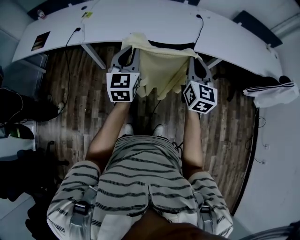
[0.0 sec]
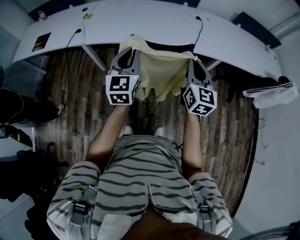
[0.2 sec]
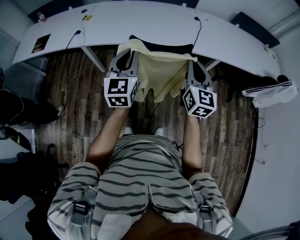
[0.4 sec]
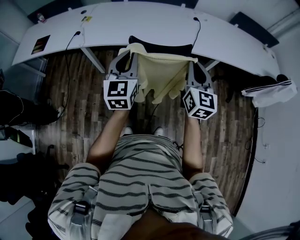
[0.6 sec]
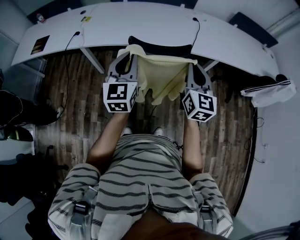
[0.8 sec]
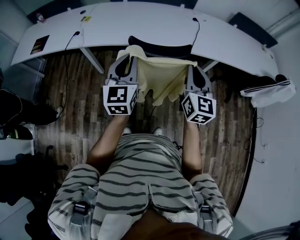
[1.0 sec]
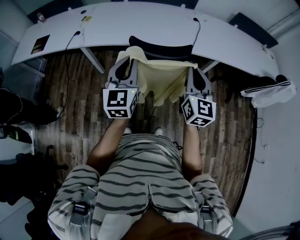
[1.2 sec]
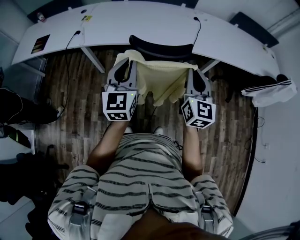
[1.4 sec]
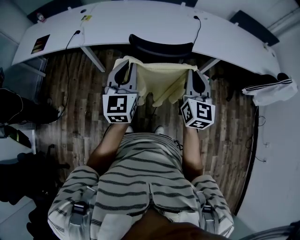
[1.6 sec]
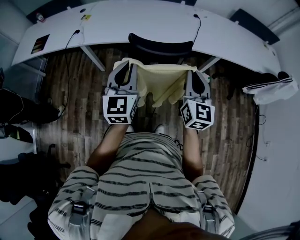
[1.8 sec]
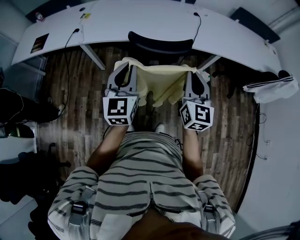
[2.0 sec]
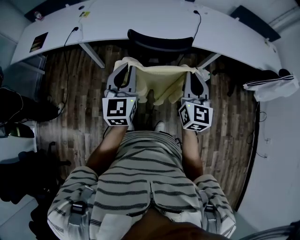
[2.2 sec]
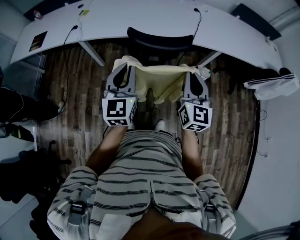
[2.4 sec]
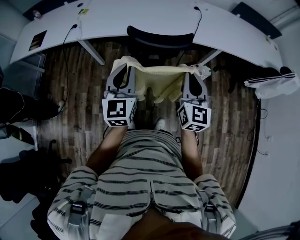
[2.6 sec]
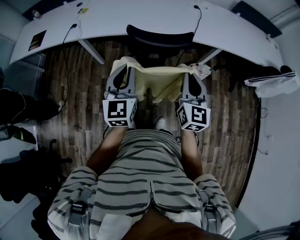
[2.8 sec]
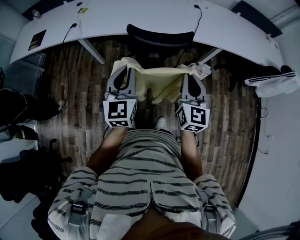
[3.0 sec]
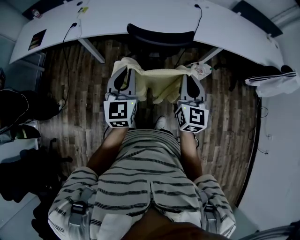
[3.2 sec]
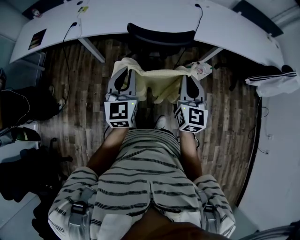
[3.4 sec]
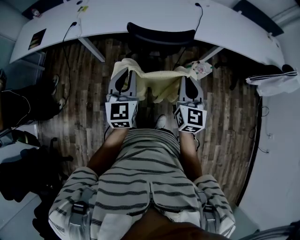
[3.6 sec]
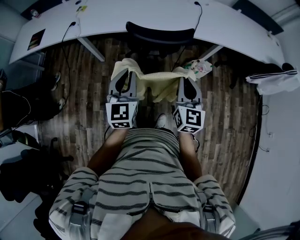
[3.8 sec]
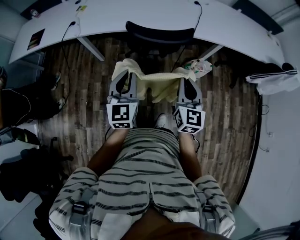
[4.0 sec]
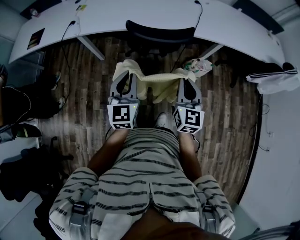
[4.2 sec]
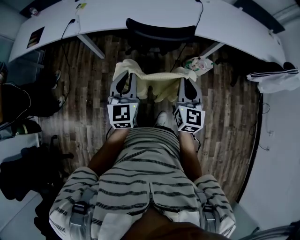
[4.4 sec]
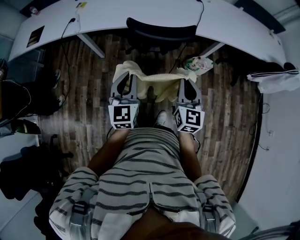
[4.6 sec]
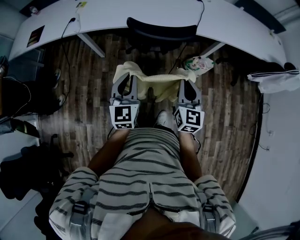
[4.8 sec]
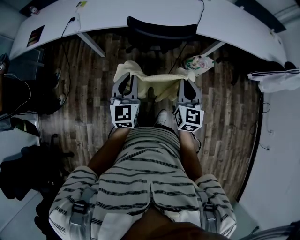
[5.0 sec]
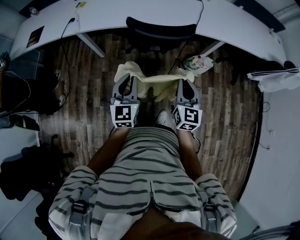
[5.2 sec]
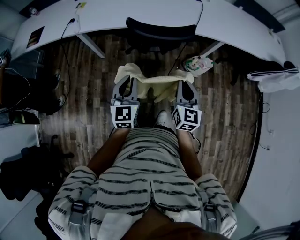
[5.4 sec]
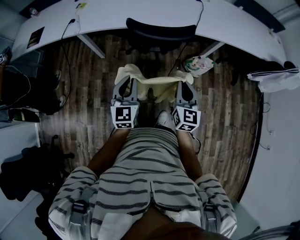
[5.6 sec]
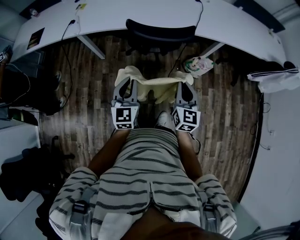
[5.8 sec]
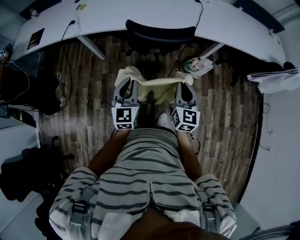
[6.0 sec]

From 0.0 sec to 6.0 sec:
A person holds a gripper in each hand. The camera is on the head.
From 0.0 sec to 1.6 sec: Both grippers travel together backward, roughly 5 cm.
From 1.6 sec to 3.0 sec: The left gripper shifts by about 5 cm, while the right gripper shifts by about 5 cm.
From 3.0 sec to 4.4 sec: The grippers both shift downward by some 5 cm.
From 4.4 sec to 6.0 sec: The left gripper heads downward, covering approximately 5 cm.

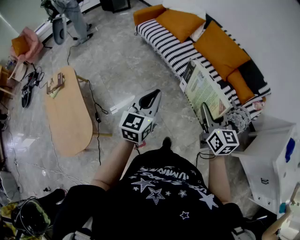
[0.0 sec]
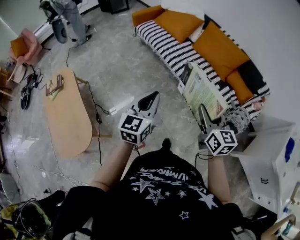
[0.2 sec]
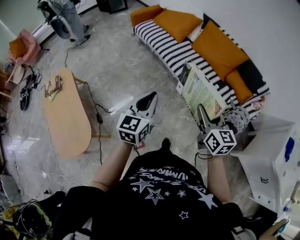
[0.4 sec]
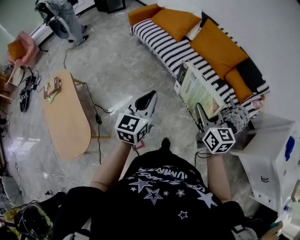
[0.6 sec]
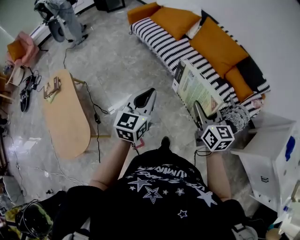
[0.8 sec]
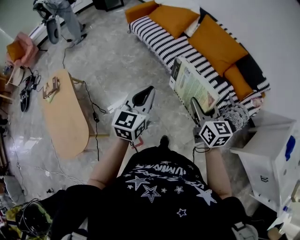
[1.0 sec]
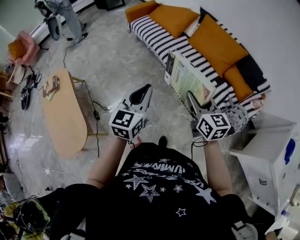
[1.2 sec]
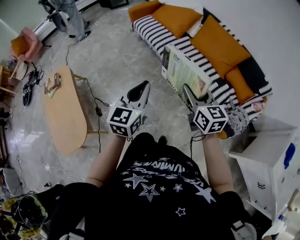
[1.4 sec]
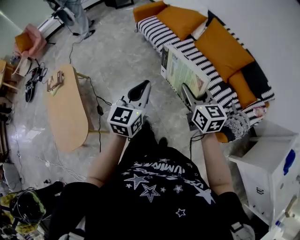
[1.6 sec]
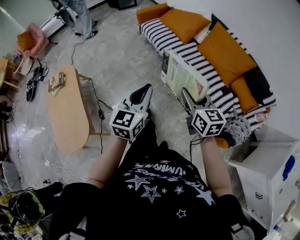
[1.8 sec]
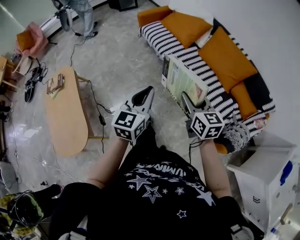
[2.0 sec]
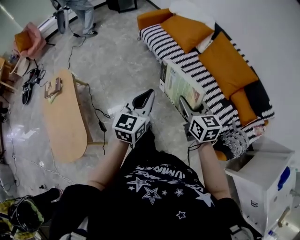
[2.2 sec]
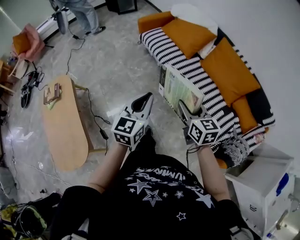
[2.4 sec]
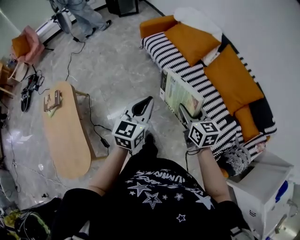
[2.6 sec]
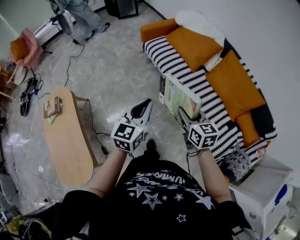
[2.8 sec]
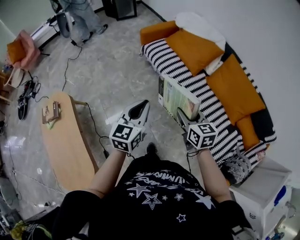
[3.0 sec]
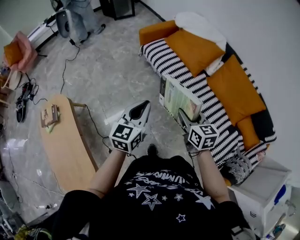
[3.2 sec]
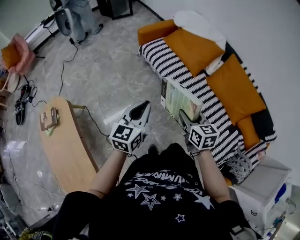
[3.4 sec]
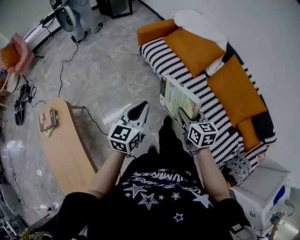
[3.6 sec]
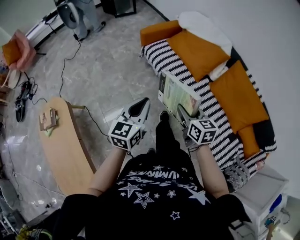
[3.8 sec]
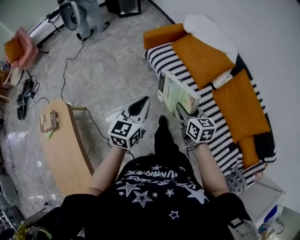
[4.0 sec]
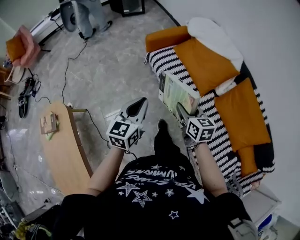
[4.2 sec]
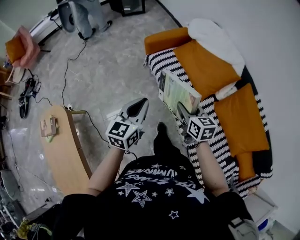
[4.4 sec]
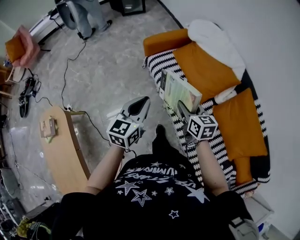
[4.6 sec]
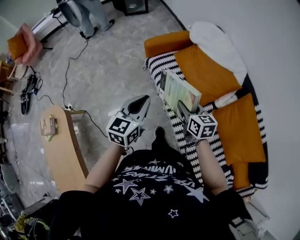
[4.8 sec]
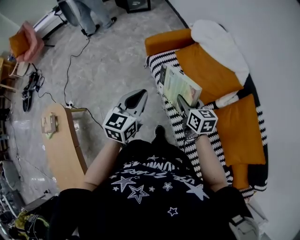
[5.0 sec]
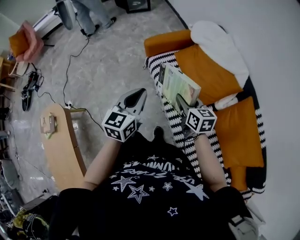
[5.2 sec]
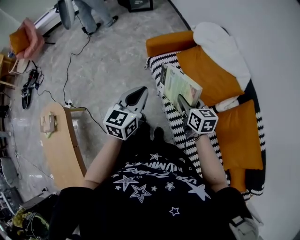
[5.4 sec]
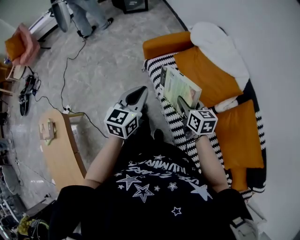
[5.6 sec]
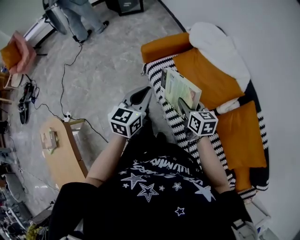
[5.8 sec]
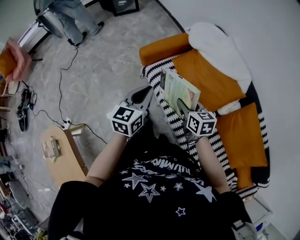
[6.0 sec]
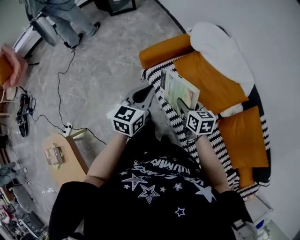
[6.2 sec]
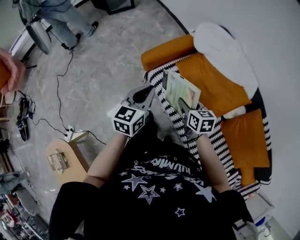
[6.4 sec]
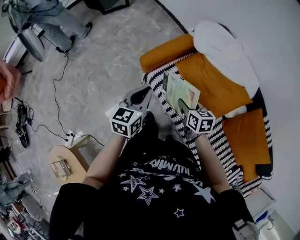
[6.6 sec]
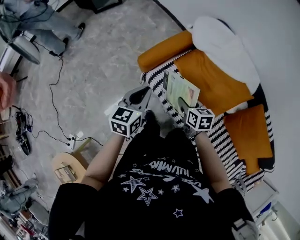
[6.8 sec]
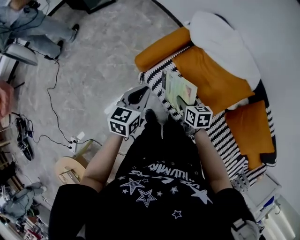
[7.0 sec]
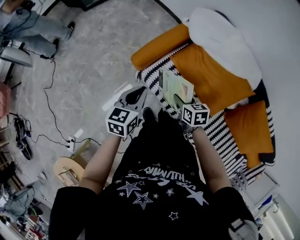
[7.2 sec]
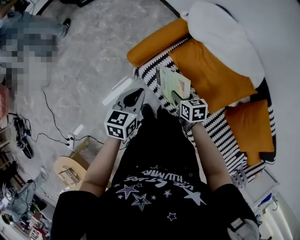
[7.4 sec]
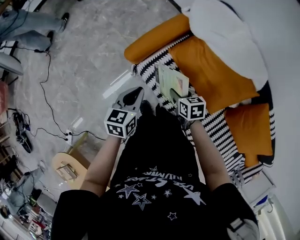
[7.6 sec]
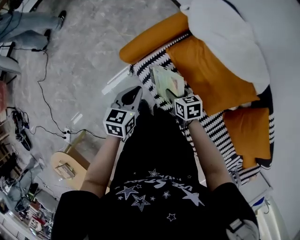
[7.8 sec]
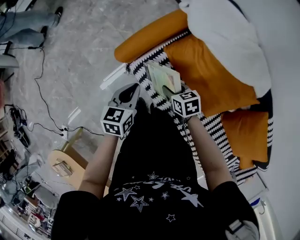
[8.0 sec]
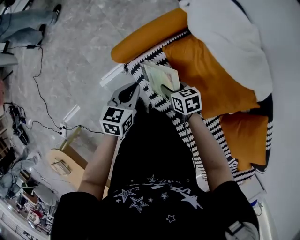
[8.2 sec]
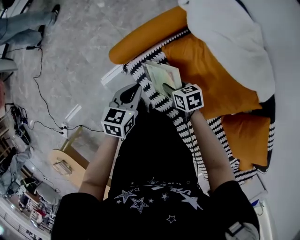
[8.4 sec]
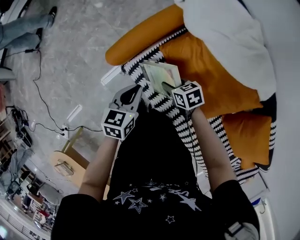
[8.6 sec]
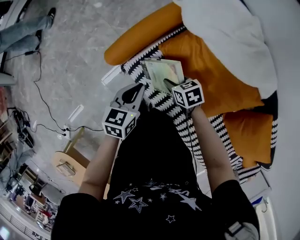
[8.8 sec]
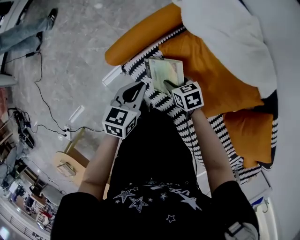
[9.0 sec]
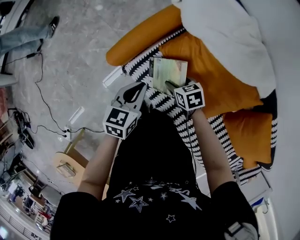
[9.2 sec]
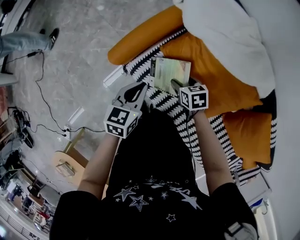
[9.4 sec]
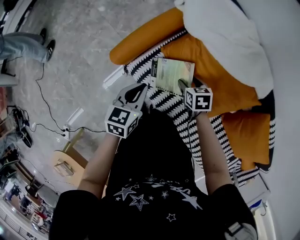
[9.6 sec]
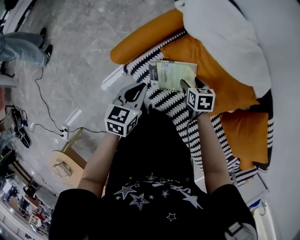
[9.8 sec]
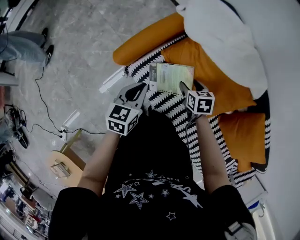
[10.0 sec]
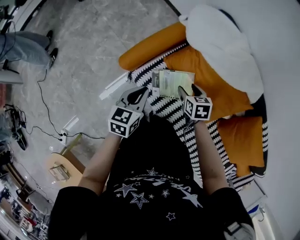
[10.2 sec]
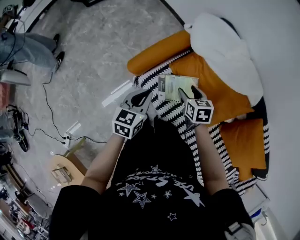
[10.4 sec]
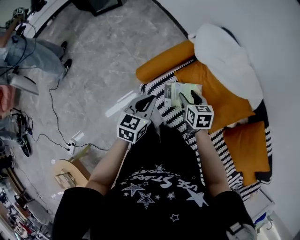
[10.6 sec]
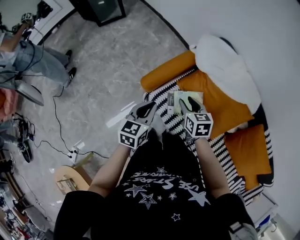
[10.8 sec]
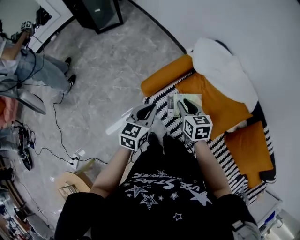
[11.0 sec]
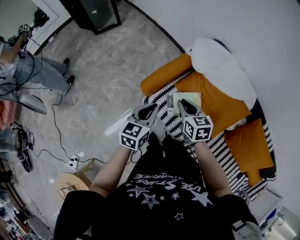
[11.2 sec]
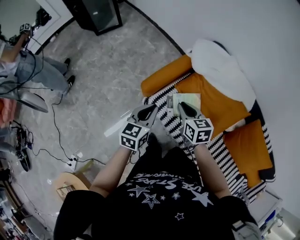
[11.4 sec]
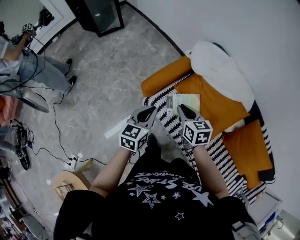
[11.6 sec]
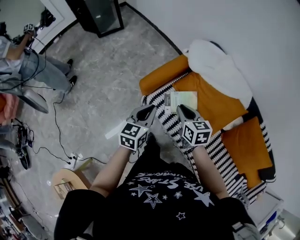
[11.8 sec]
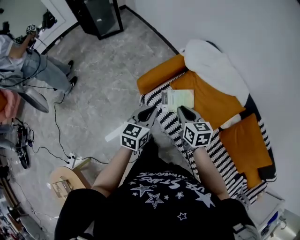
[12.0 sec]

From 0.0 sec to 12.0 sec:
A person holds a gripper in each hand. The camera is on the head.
From 0.0 sec to 1.6 sec: The left gripper is displaced forward by some 5 cm, while the right gripper is displaced forward by about 10 cm.
From 1.6 sec to 3.0 sec: The grippers both shift forward and to the left by approximately 30 cm.
From 3.0 sec to 4.4 sec: The grippers both shift forward by roughly 30 cm.
From 4.4 sec to 6.0 sec: Both grippers travel together forward, approximately 25 cm.
From 6.0 sec to 7.6 sec: The left gripper goes some 25 cm forward and downward, and turns by about 20 degrees; the right gripper moves downward and forward, about 25 cm, and turns by roughly 20 degrees.
From 7.6 sec to 9.0 sec: The right gripper shifts about 10 cm downward and forward, while the left gripper is displaced to the right and downward by about 10 cm.
From 9.0 sec to 10.4 sec: Both grippers travel together upward, roughly 10 cm. The right gripper changes its angle by about 20 degrees.
From 10.4 sec to 12.0 sec: The right gripper goes approximately 20 cm upward and backward, and closes its fingers, while the left gripper shifts roughly 15 cm backward and upward.

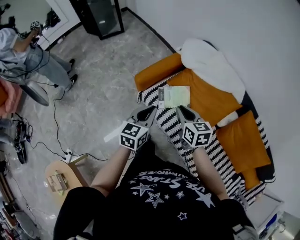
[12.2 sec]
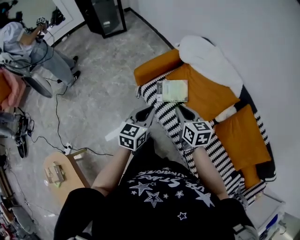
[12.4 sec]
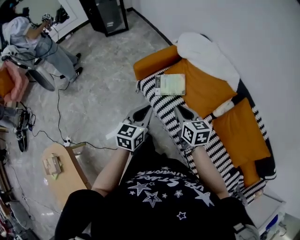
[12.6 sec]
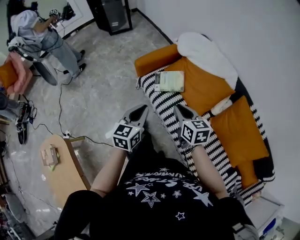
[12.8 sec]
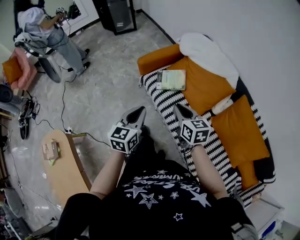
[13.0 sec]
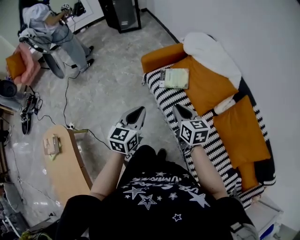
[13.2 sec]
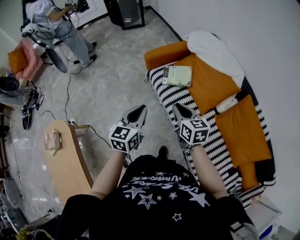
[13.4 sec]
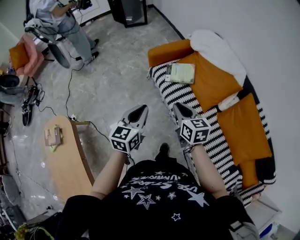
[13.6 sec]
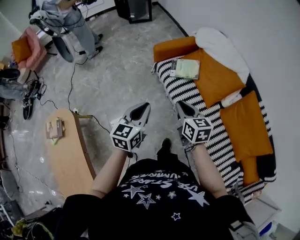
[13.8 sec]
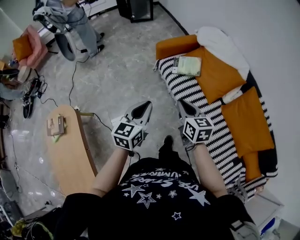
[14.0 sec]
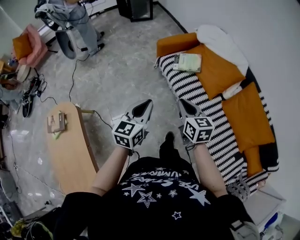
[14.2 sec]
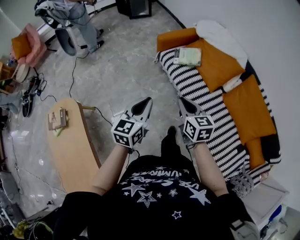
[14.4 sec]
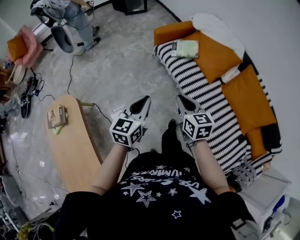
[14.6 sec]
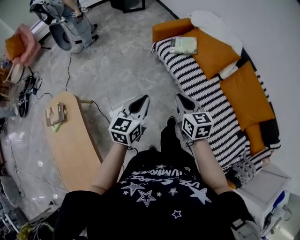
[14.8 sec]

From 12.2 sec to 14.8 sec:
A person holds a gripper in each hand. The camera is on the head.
From 12.2 sec to 13.4 sec: Both grippers travel together backward, approximately 25 cm.
From 13.4 sec to 14.8 sec: The grippers both shift backward and to the left by about 25 cm.

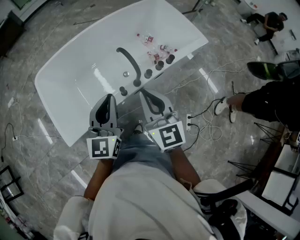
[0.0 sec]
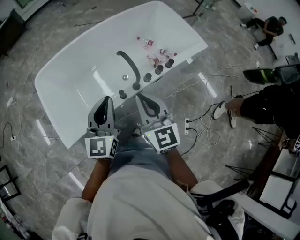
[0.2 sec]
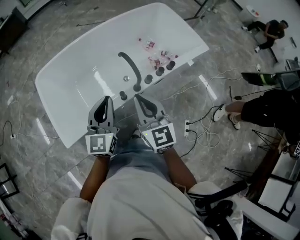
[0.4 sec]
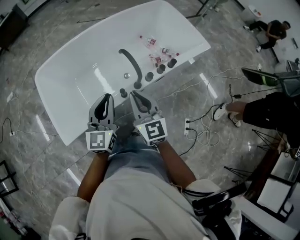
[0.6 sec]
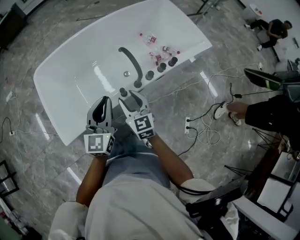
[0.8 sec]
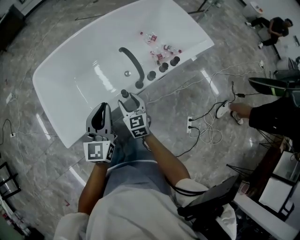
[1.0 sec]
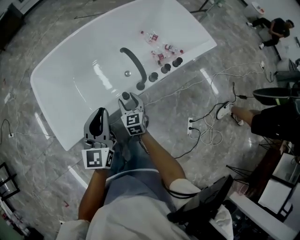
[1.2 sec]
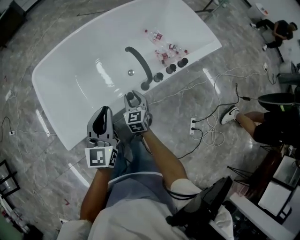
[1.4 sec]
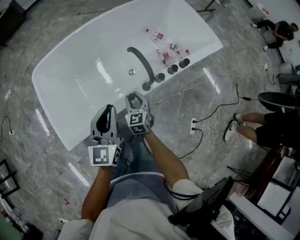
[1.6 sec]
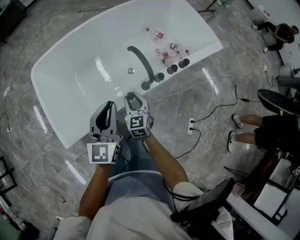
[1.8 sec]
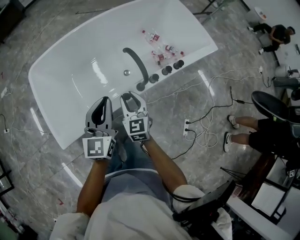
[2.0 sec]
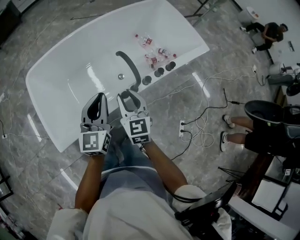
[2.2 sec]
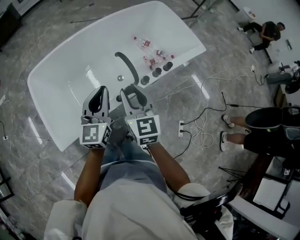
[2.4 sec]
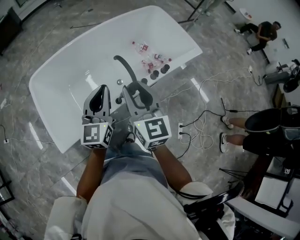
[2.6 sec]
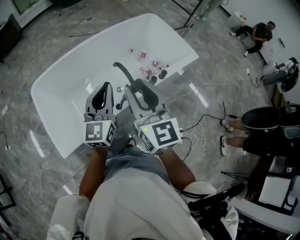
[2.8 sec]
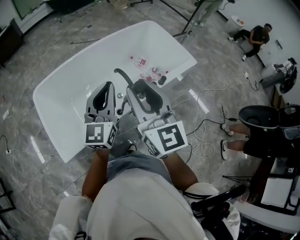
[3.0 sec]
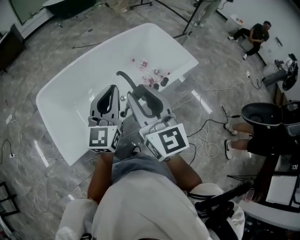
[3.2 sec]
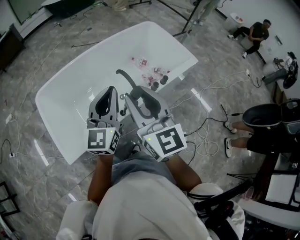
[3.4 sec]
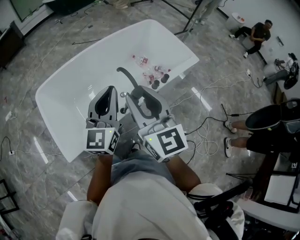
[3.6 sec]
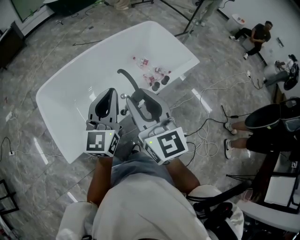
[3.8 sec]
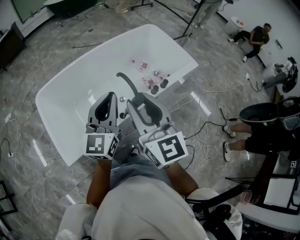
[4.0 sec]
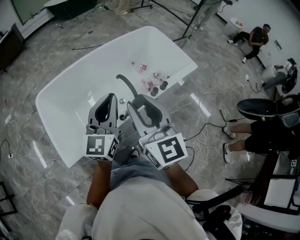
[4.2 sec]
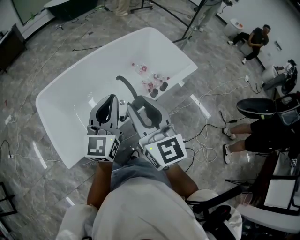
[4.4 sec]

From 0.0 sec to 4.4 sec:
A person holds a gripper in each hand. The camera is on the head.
From 0.0 sec to 1.4 sec: The left gripper goes some 20 cm downward and forward, while the right gripper heads downward and forward, covering about 40 cm, rotates about 30 degrees, and opens up.
From 1.4 sec to 3.0 sec: The right gripper goes some 50 cm upward, and angles its fingers upward, by roughly 30 degrees, while the left gripper goes roughly 25 cm upward.
From 3.0 sec to 4.4 sec: There are only small adjustments of the grippers.
